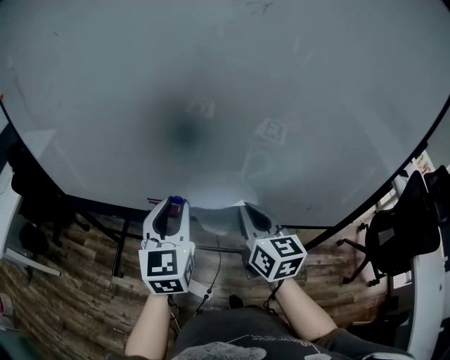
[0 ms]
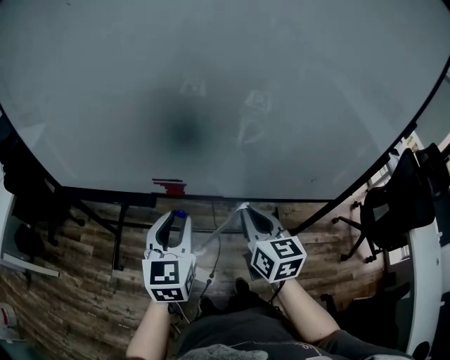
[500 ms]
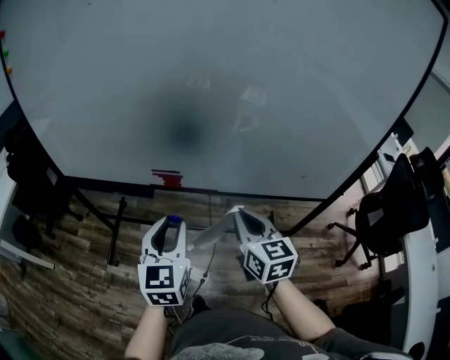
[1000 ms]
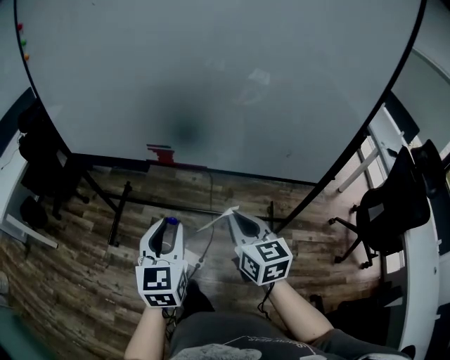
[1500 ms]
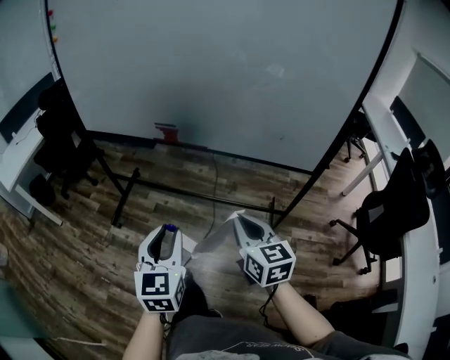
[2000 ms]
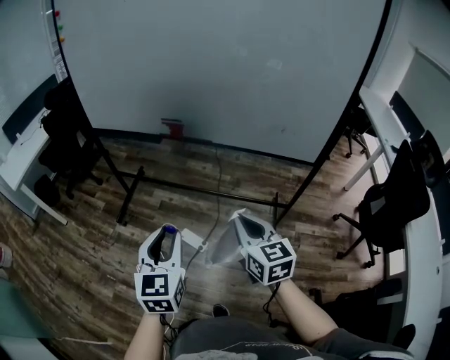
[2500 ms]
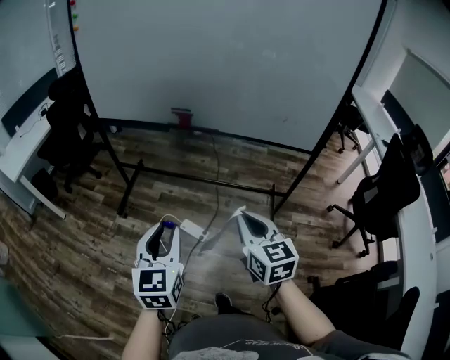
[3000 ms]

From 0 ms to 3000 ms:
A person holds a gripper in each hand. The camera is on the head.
From 0 ms to 1500 ms: Both grippers move backward, about 20 cm.
From 1500 ms to 3000 ms: Both grippers travel together backward, about 20 cm.

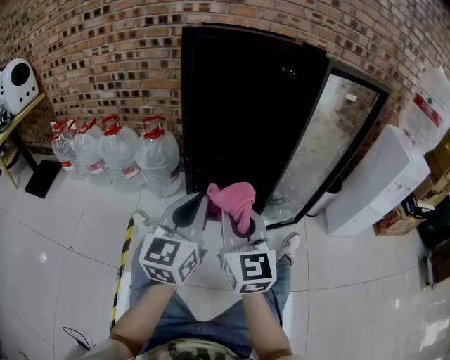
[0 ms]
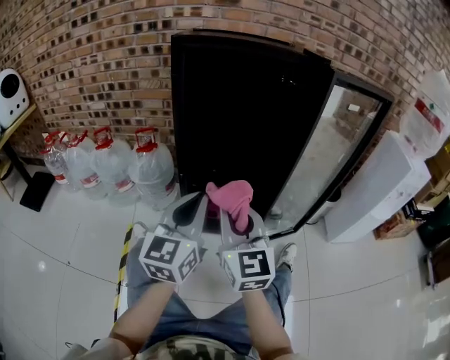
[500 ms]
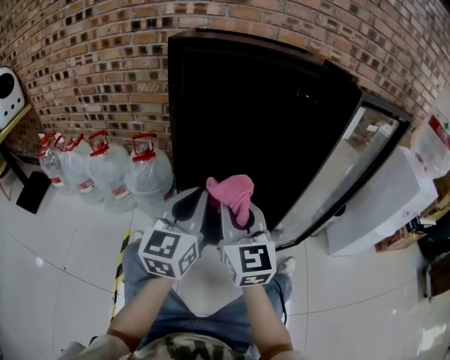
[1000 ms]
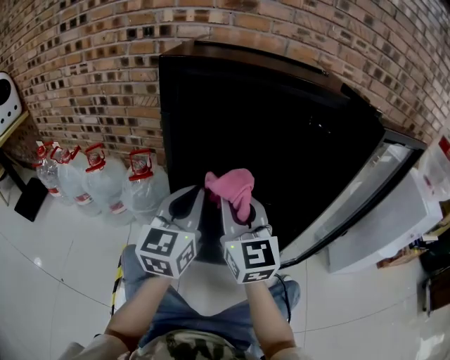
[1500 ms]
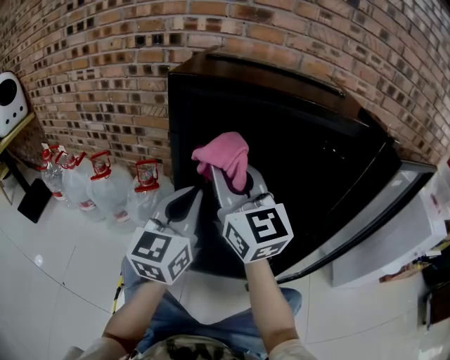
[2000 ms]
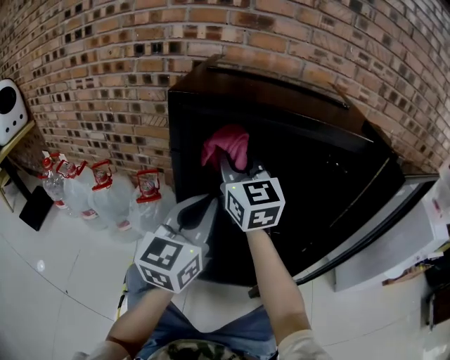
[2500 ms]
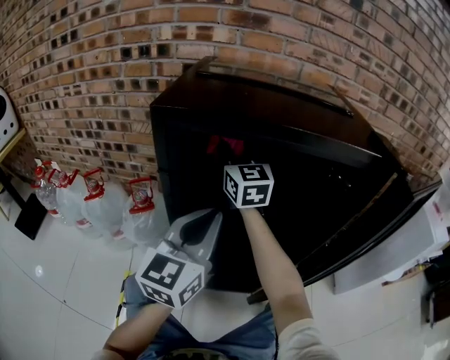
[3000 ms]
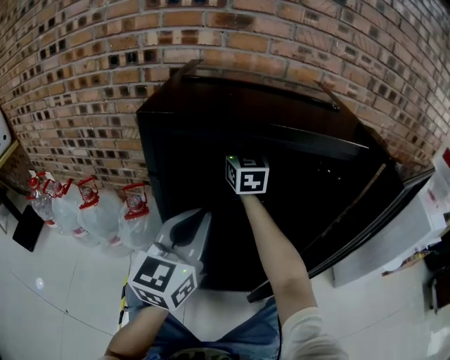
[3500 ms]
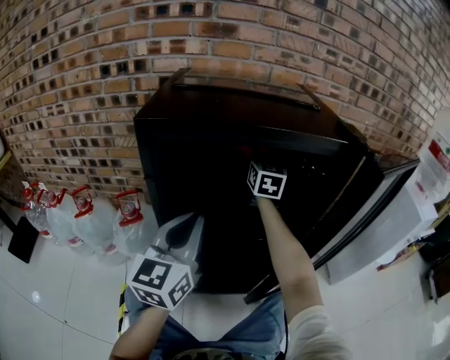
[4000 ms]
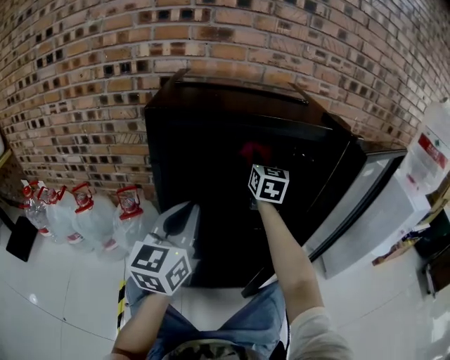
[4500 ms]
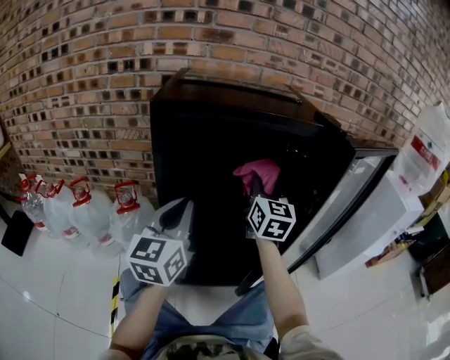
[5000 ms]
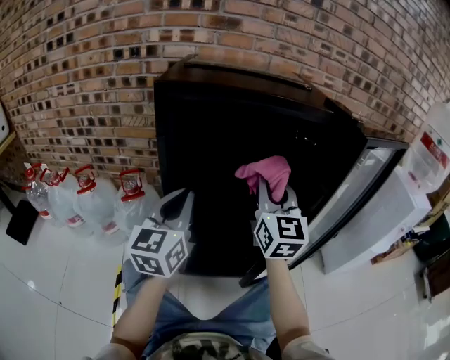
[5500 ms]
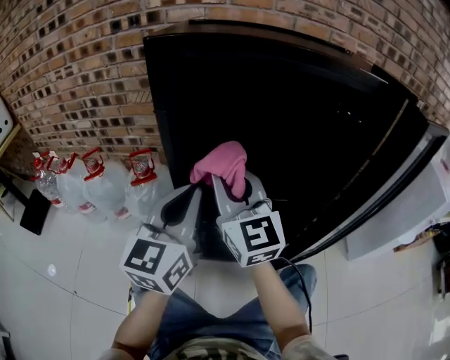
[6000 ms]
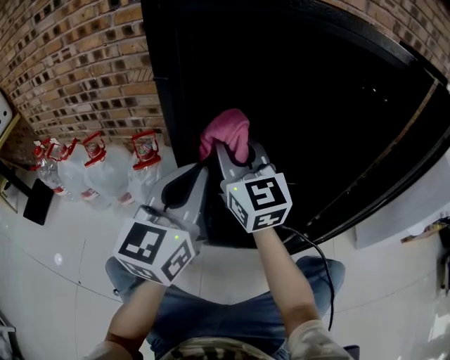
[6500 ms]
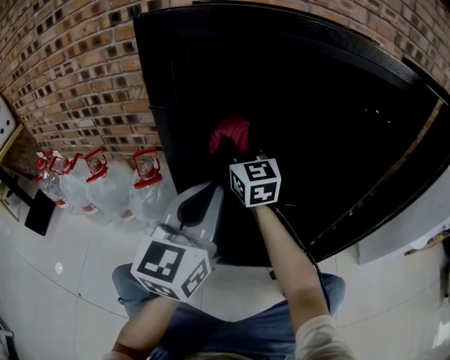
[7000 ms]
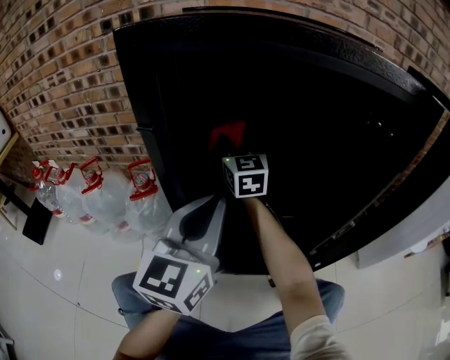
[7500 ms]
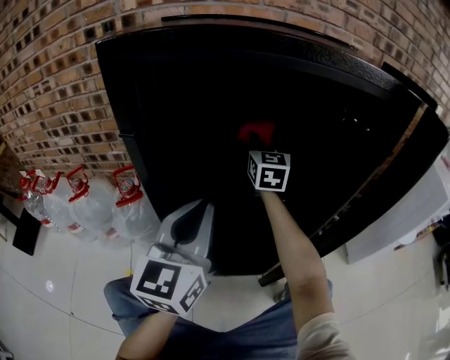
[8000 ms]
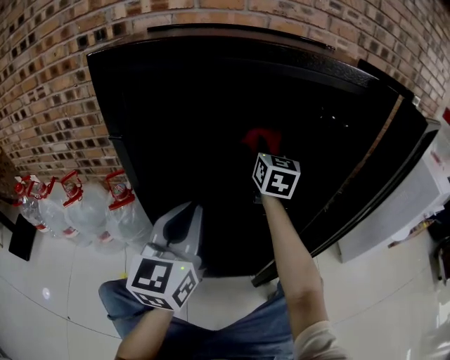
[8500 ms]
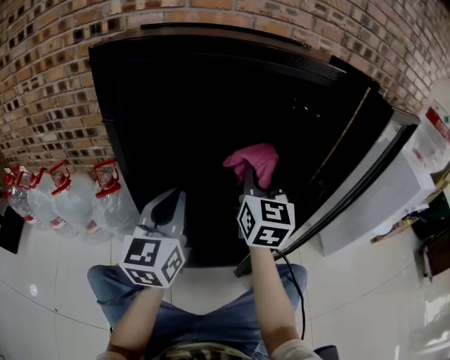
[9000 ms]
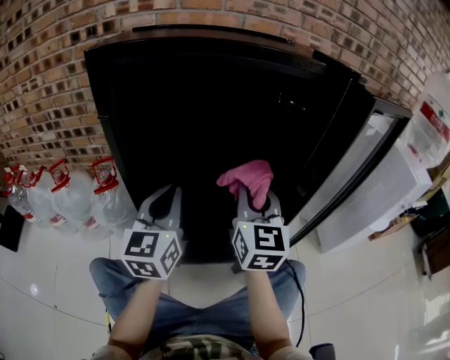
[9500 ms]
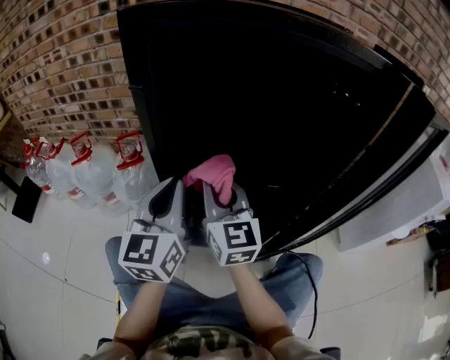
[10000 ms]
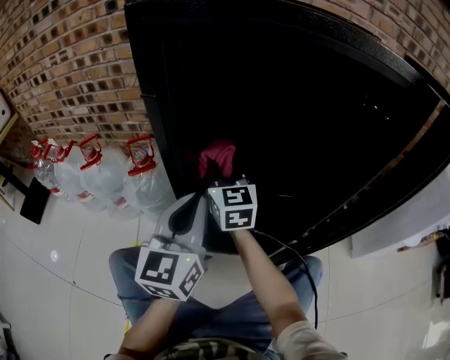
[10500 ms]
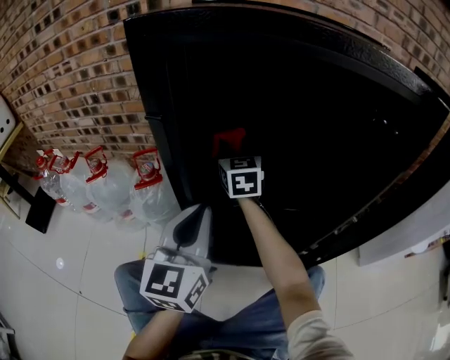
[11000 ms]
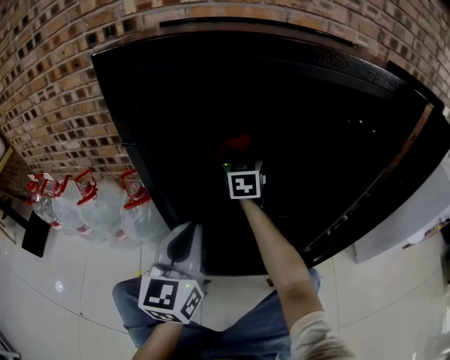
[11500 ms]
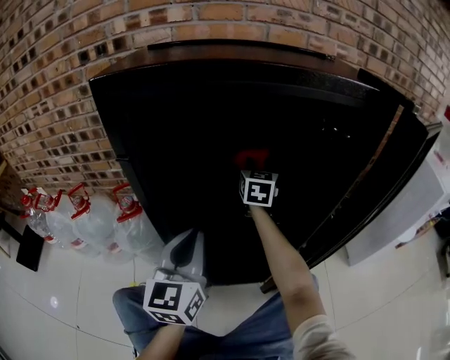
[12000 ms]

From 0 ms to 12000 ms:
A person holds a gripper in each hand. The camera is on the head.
From 0 ms to 2000 ms: The left gripper moves forward, about 30 cm, while the right gripper goes roughly 35 cm forward and upward.
From 2000 ms to 4000 ms: The right gripper moves forward and to the right, roughly 30 cm, and rotates approximately 40 degrees.
From 4000 ms to 6000 ms: The right gripper moves backward and to the left, about 30 cm, and turns by some 30 degrees. Meanwhile the left gripper ends up roughly 5 cm from where it was.
From 6000 ms to 8000 ms: The right gripper moves forward and to the right, about 30 cm, and rotates some 30 degrees; the left gripper moves some 5 cm.
From 8000 ms to 10000 ms: The right gripper is displaced backward by some 25 cm, and changes its angle by about 20 degrees. Meanwhile the left gripper shifts by approximately 5 cm.
From 10000 ms to 12000 ms: The right gripper heads forward and to the right, covering approximately 30 cm, and rotates approximately 30 degrees.

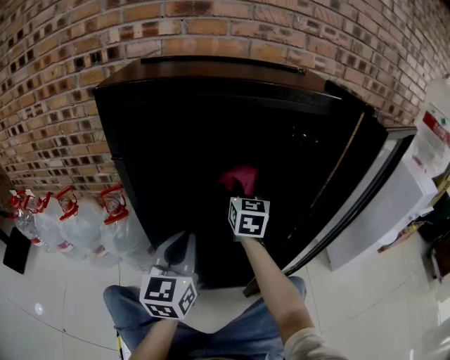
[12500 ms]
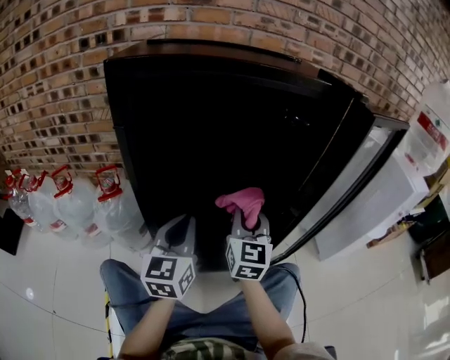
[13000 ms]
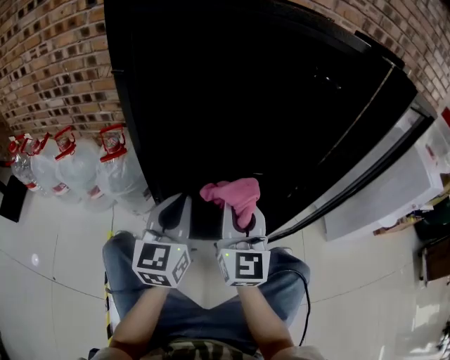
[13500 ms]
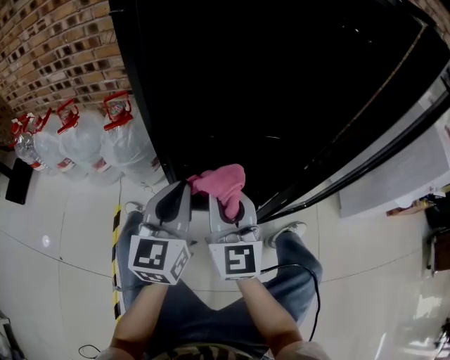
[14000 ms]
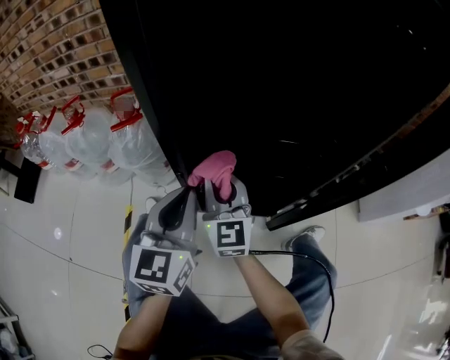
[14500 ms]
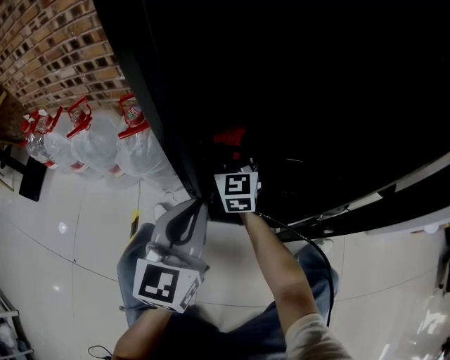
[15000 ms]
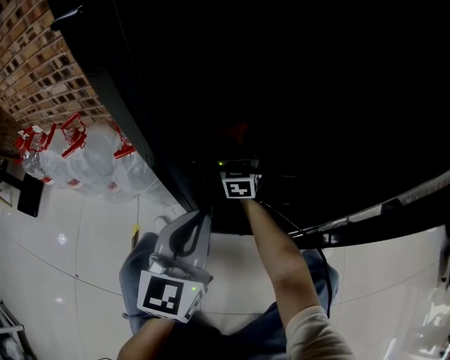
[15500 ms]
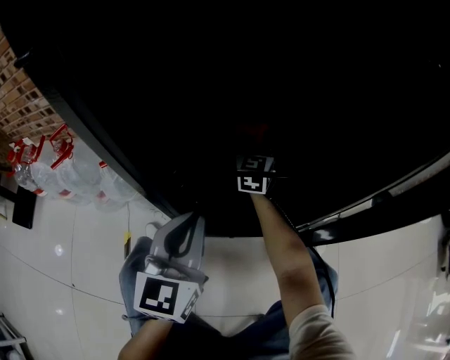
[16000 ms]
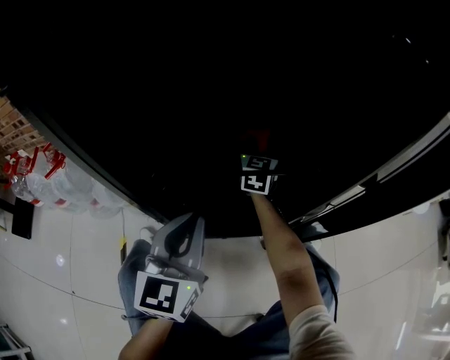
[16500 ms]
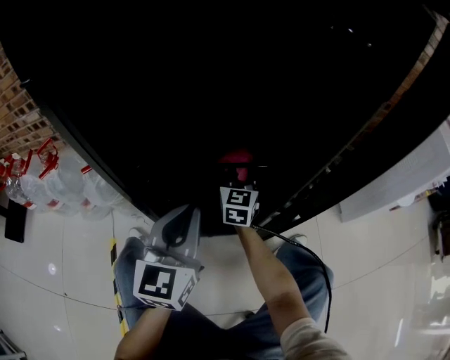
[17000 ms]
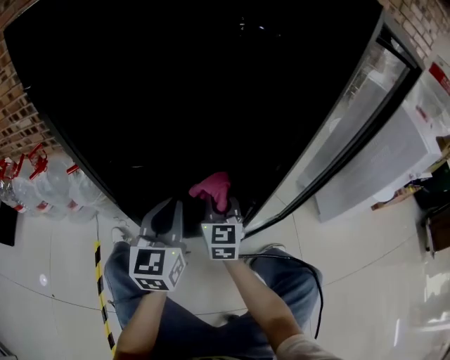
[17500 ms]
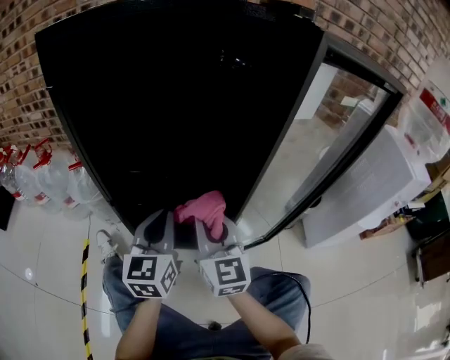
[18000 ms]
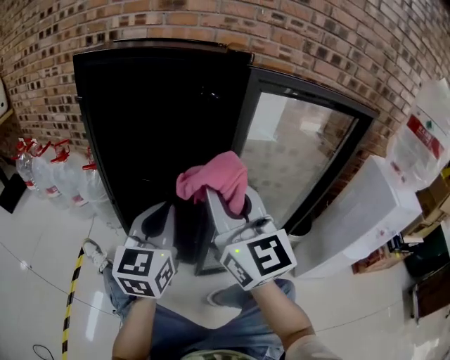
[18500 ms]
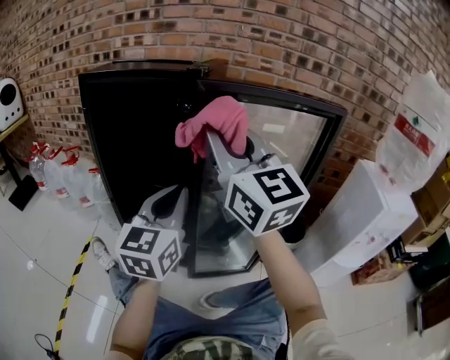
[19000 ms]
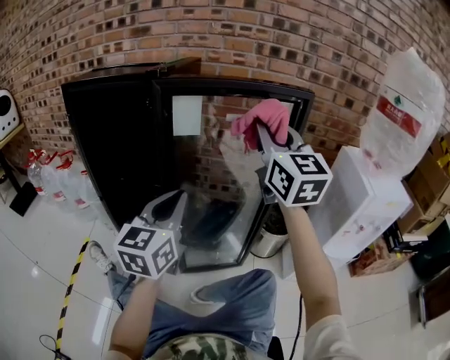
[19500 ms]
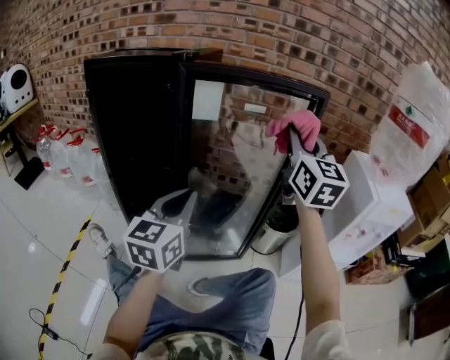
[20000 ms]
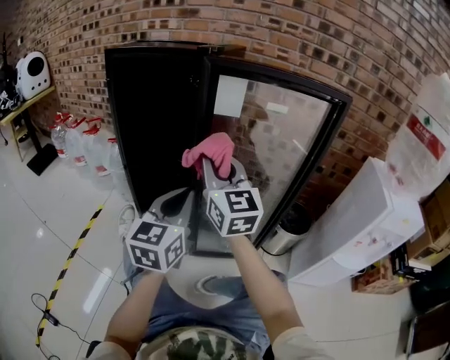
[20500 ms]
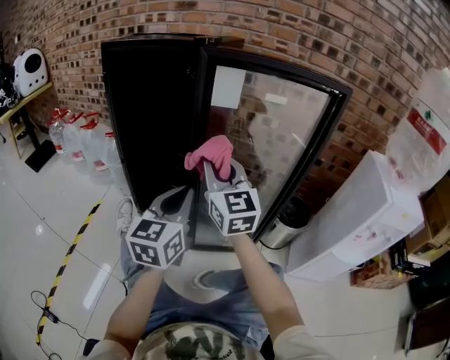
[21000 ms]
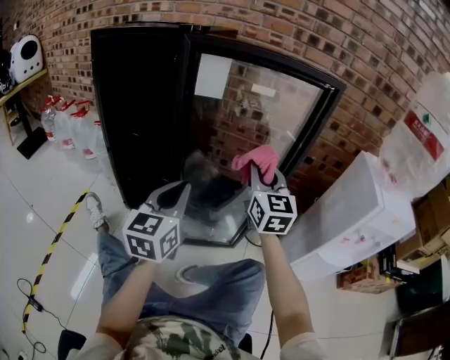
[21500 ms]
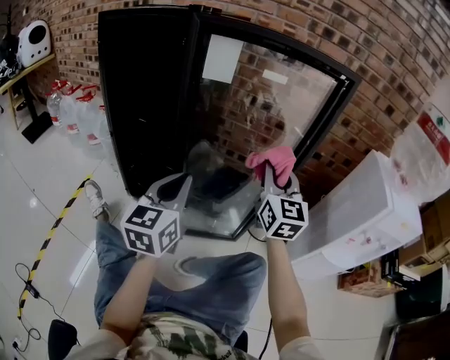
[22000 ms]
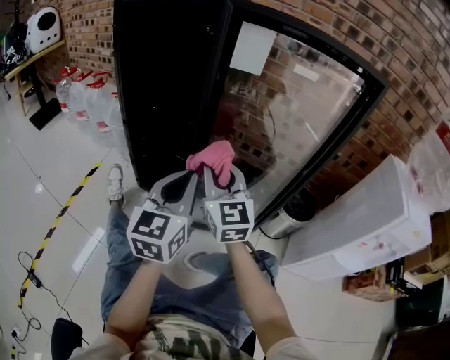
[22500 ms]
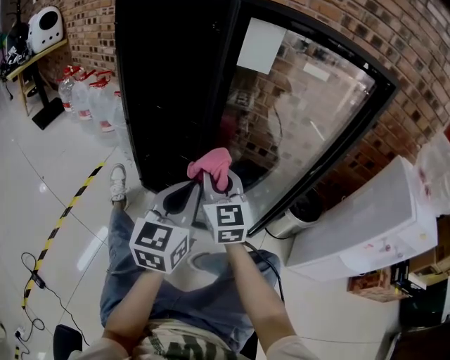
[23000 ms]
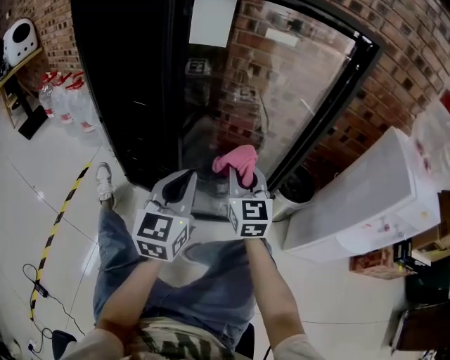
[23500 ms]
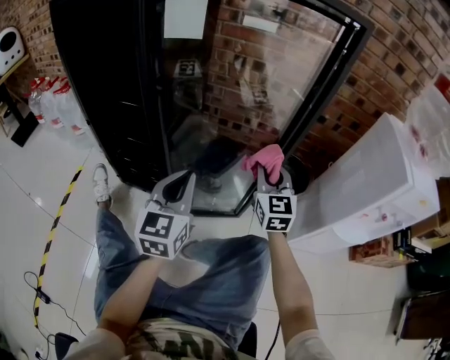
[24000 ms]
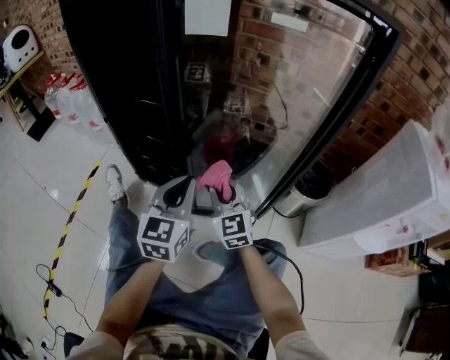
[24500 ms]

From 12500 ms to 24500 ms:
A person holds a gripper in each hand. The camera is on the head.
From 12500 ms to 14500 ms: The left gripper moves downward, backward and to the left, about 15 cm, while the right gripper is displaced backward, to the left and downward by some 30 cm, and rotates roughly 20 degrees.
From 14500 ms to 16500 ms: The right gripper travels forward and to the right by about 30 cm, and turns by roughly 30 degrees. Meanwhile the left gripper shifts roughly 5 cm to the right.
From 16500 ms to 18500 ms: The right gripper goes roughly 40 cm upward, and swivels some 50 degrees, while the left gripper moves some 25 cm.
From 18500 ms to 20500 ms: The left gripper moves to the right and backward, some 15 cm, while the right gripper moves roughly 30 cm to the right and comes back.
From 20500 ms to 22500 ms: The left gripper goes approximately 5 cm downward; the right gripper goes approximately 15 cm downward, and reaches approximately 20 cm to the right, then returns.
From 22500 ms to 24500 ms: The left gripper moves downward, approximately 10 cm. Meanwhile the right gripper shifts approximately 15 cm downward, and reaches about 25 cm to the right, then returns.
